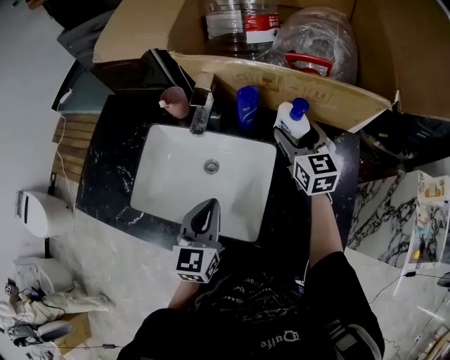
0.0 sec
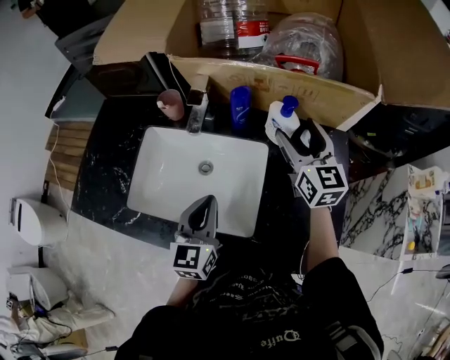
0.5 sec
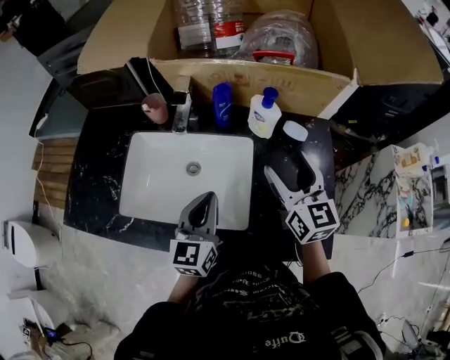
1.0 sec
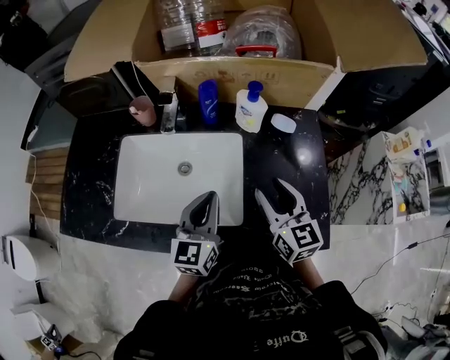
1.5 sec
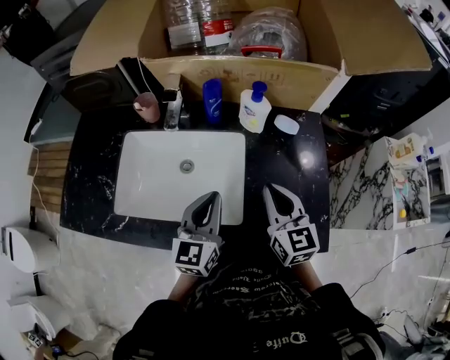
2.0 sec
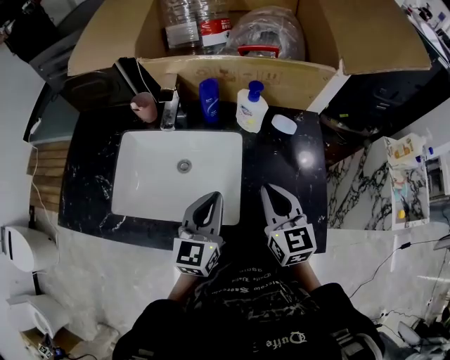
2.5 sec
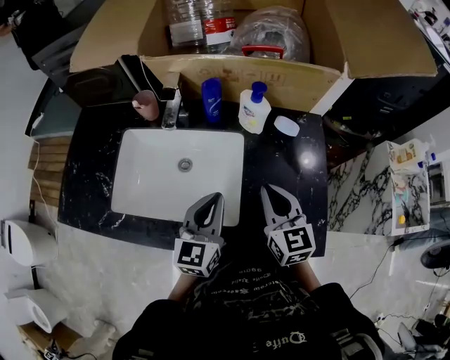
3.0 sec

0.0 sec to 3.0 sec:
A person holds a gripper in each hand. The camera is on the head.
0.0 sec to 1.5 sec: The left gripper shifts by roughly 5 cm; the right gripper shifts about 25 cm backward.
1.5 sec to 3.0 sec: The right gripper closes up.

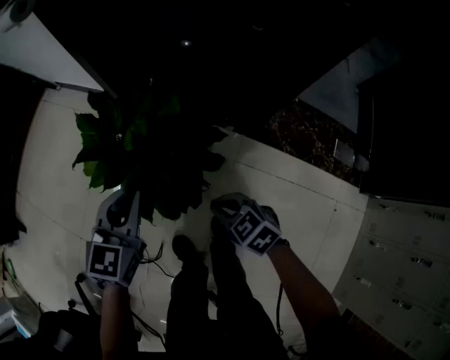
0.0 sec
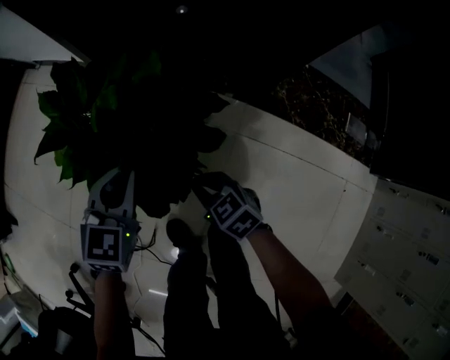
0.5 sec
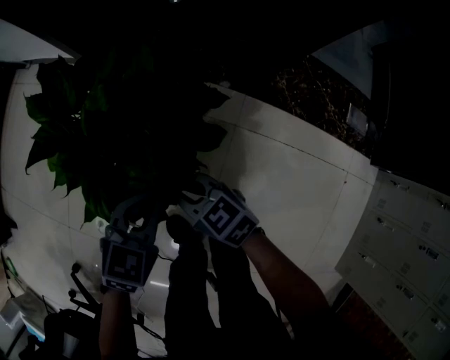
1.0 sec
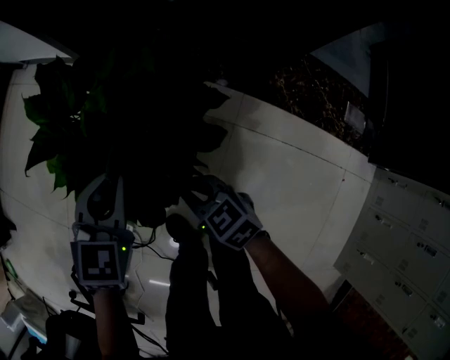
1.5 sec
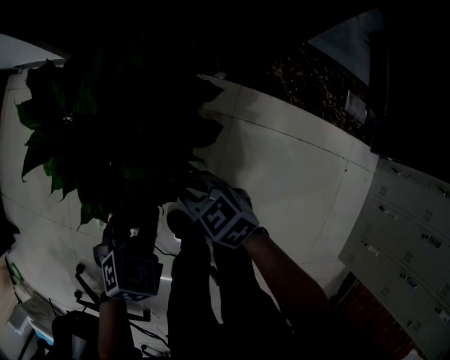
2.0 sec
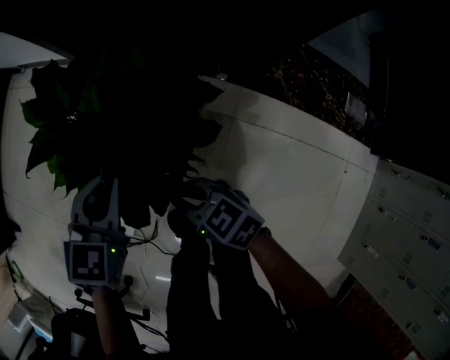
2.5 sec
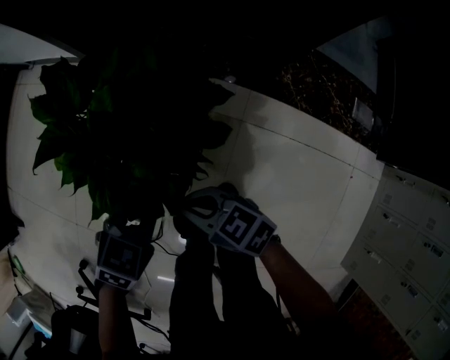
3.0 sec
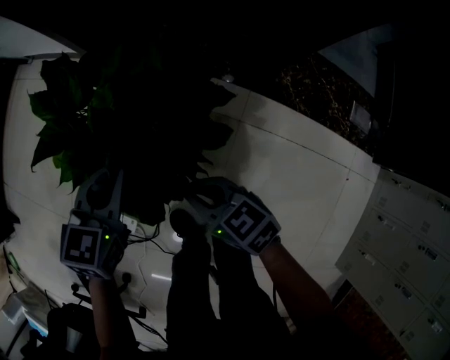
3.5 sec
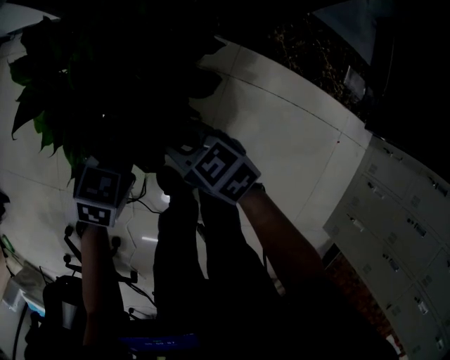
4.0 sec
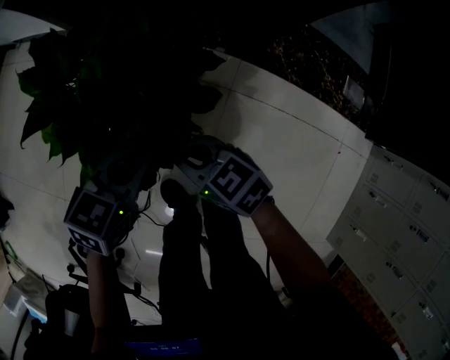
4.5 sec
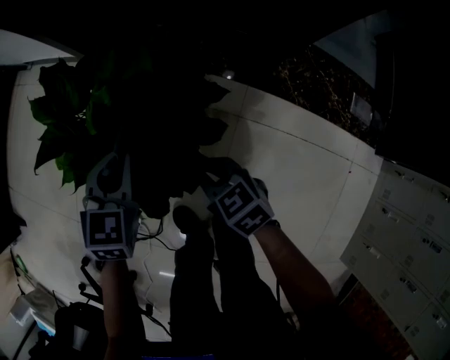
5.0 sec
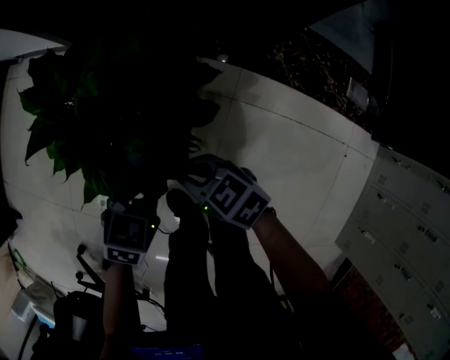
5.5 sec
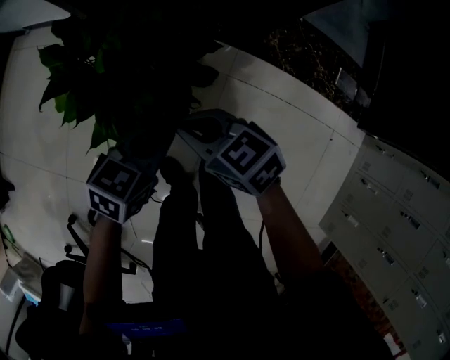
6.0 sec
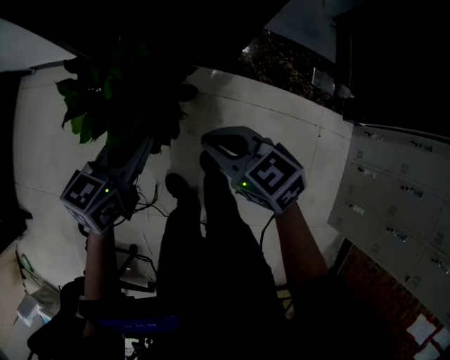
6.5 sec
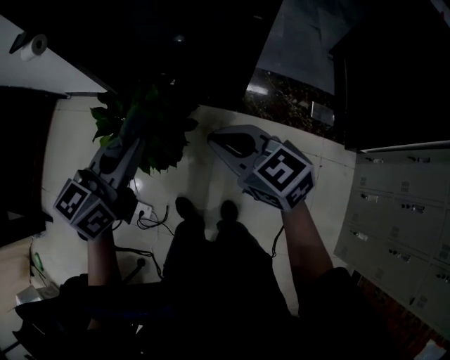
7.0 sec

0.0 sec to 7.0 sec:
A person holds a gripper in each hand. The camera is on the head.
0.0 sec to 2.0 sec: The left gripper goes up and down, roughly 20 cm each way, reversing 2 times, and points its fingers about 30 degrees further downward, while the right gripper goes about 15 cm downward, forward and to the left.
2.0 sec to 3.5 sec: The right gripper shifts roughly 5 cm upward; the left gripper swings up and down, roughly 10 cm each way, with 2 reversals, and rotates about 40 degrees.
3.5 sec to 5.0 sec: The right gripper changes place by some 5 cm. Meanwhile the left gripper travels backward and back again, approximately 5 cm each way.
5.0 sec to 7.0 sec: Both grippers travel together upward, approximately 40 cm. The right gripper rotates roughly 30 degrees. The left gripper changes its angle by approximately 40 degrees.

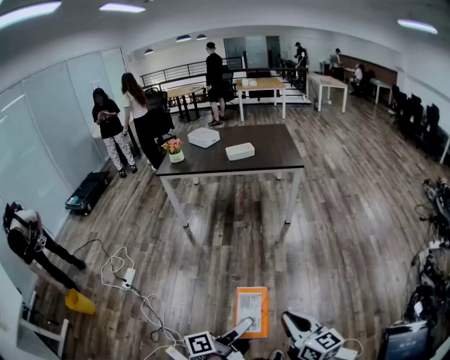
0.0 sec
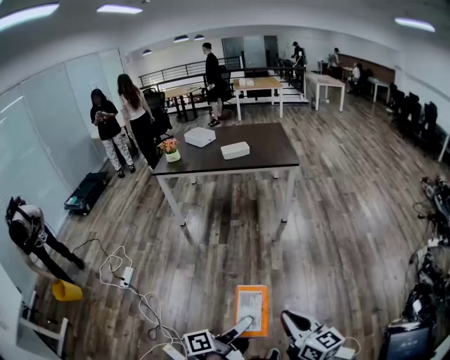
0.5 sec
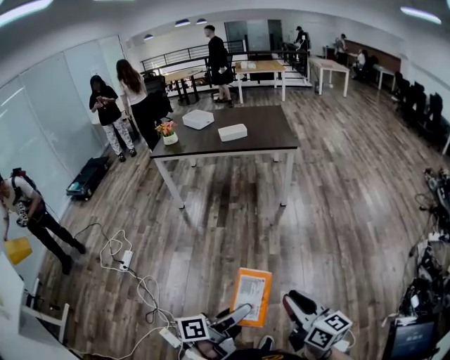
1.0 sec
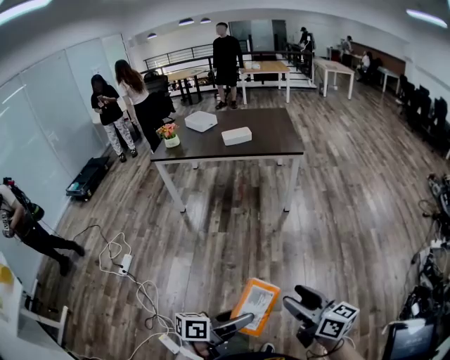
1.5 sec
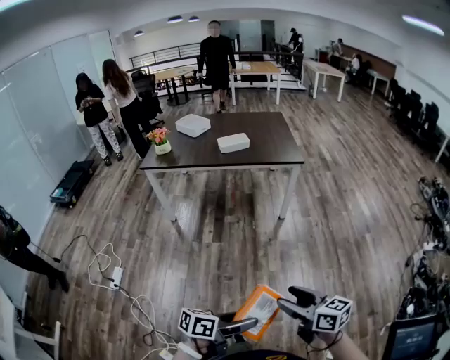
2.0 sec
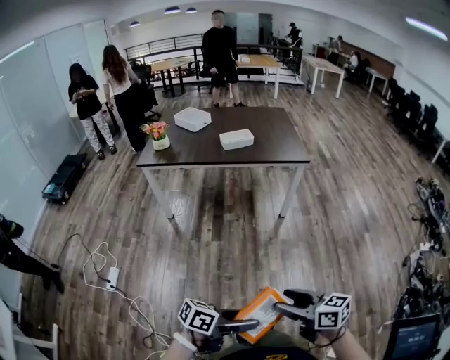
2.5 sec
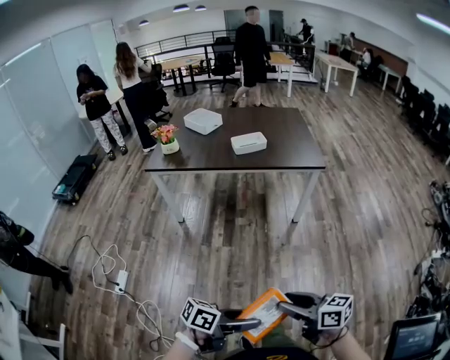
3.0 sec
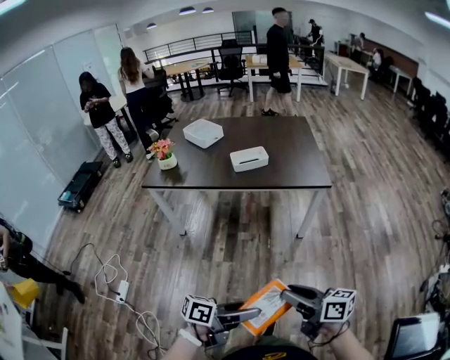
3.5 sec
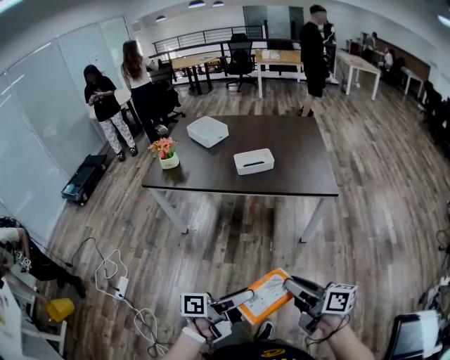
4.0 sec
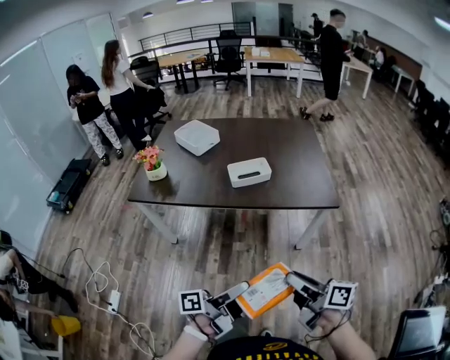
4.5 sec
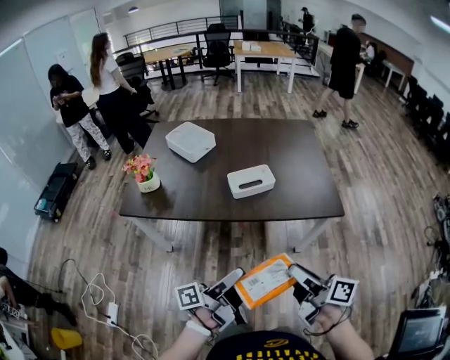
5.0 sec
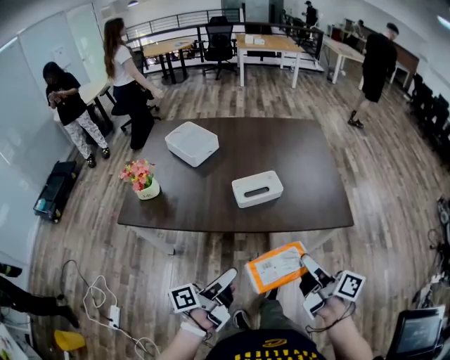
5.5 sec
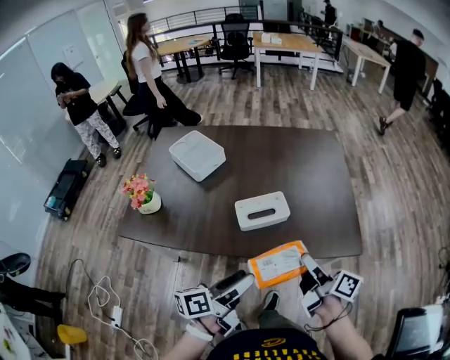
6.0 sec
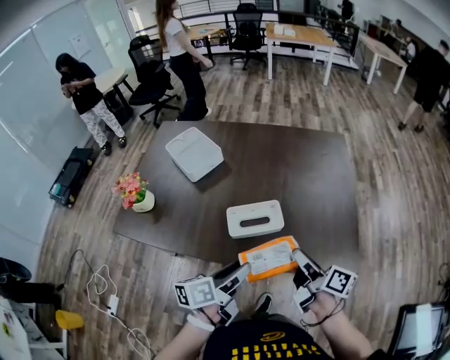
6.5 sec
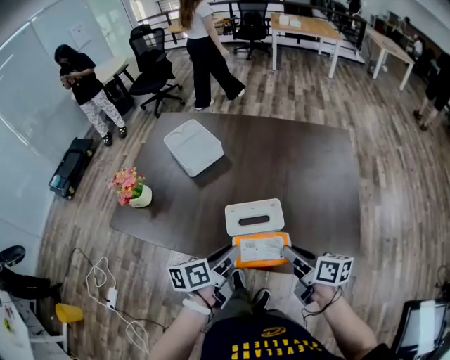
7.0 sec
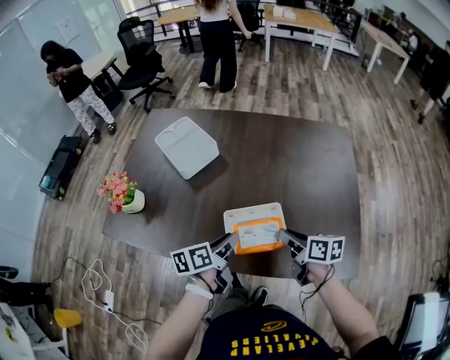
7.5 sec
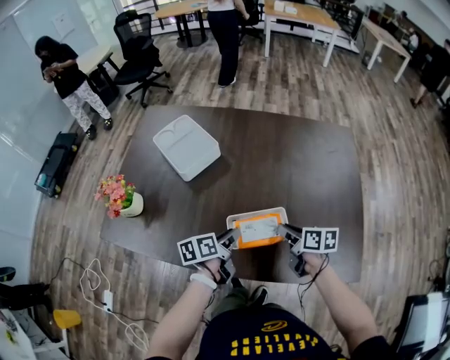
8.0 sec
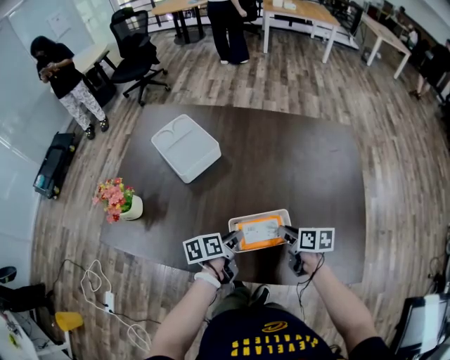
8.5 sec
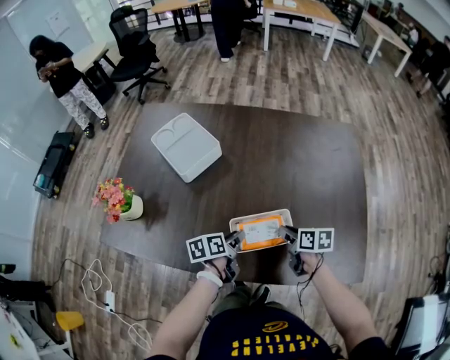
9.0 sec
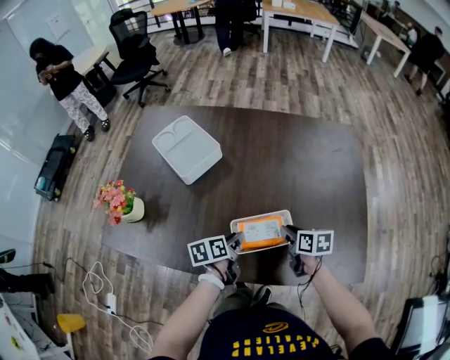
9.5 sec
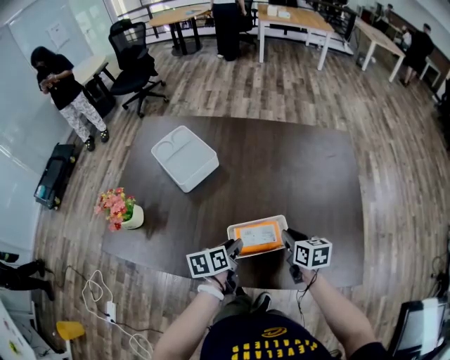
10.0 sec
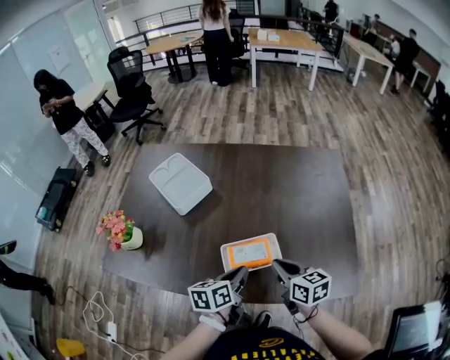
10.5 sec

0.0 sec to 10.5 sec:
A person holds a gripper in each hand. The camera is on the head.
0.0 sec to 2.0 sec: Both grippers travel together forward, about 15 cm. The right gripper opens, while the left gripper turns by roughly 40 degrees.
2.0 sec to 4.0 sec: The left gripper moves approximately 40 cm, and swivels approximately 30 degrees. Meanwhile the right gripper moves some 35 cm, rotates about 20 degrees, and closes.
4.0 sec to 6.5 sec: The pair of grippers is taken forward, about 50 cm. The left gripper turns by about 30 degrees.
6.5 sec to 8.5 sec: The right gripper travels downward and forward by about 25 cm, and angles its fingers downward, by approximately 40 degrees. The left gripper shifts approximately 25 cm forward and downward, and closes.
8.5 sec to 10.5 sec: The right gripper is displaced upward and backward by about 10 cm, and changes its angle by about 20 degrees. The left gripper heads upward and to the right, covering about 10 cm, and closes up.

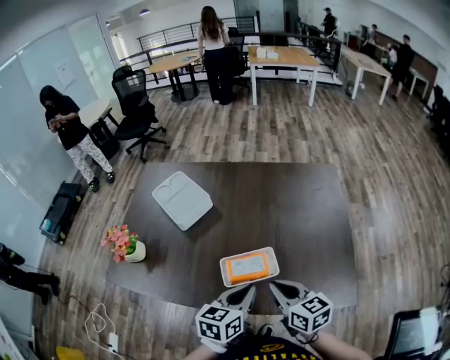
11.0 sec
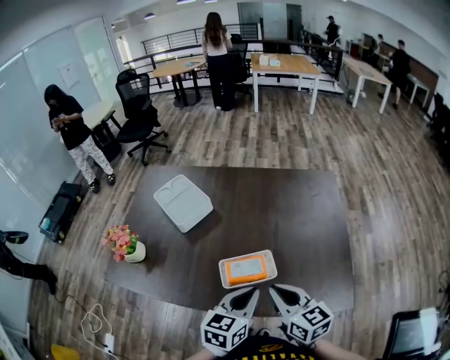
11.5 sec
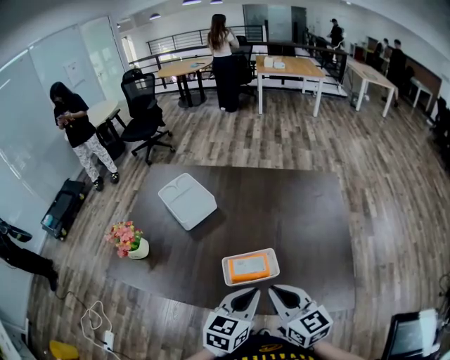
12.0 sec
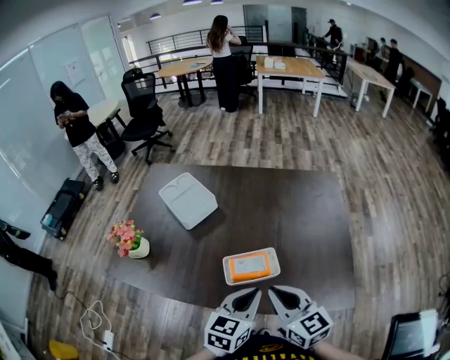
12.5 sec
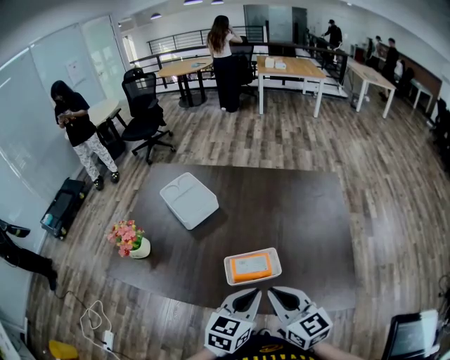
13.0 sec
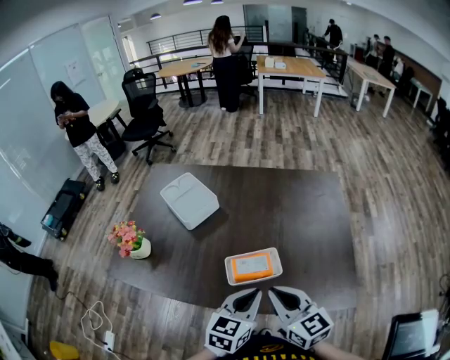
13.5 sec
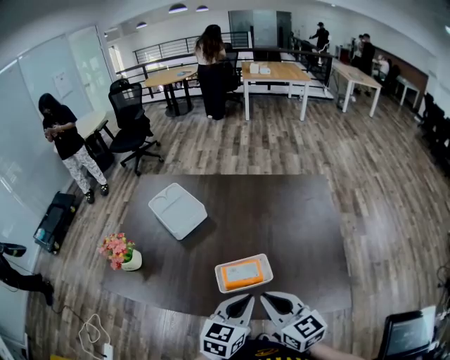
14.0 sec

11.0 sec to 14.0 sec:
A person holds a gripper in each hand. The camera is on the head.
11.0 sec to 12.5 sec: The right gripper is displaced upward by some 5 cm.
12.5 sec to 14.0 sec: Neither gripper changes place.

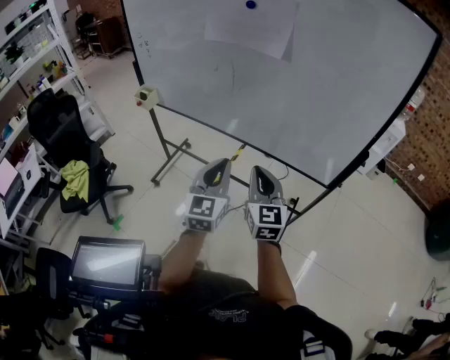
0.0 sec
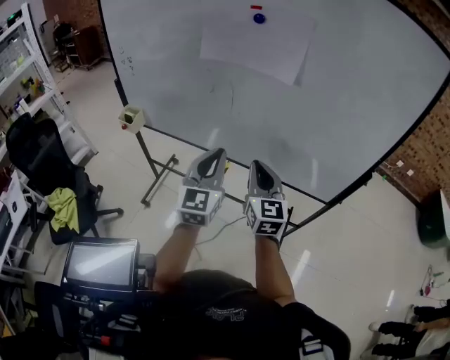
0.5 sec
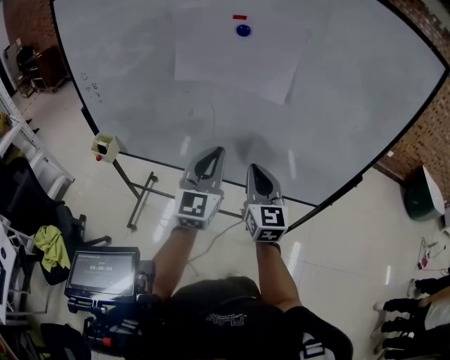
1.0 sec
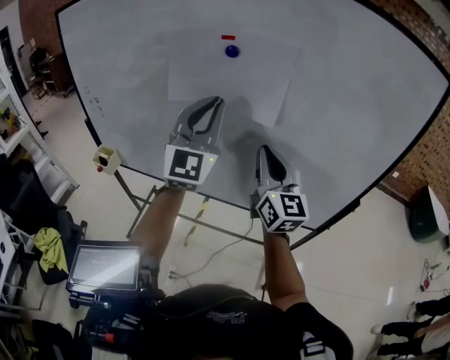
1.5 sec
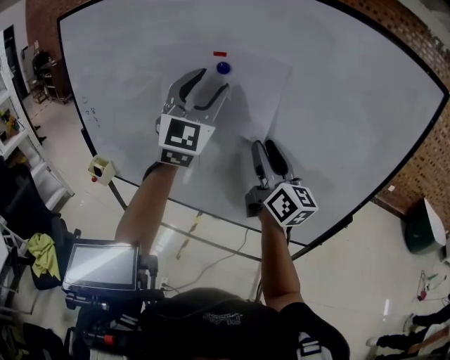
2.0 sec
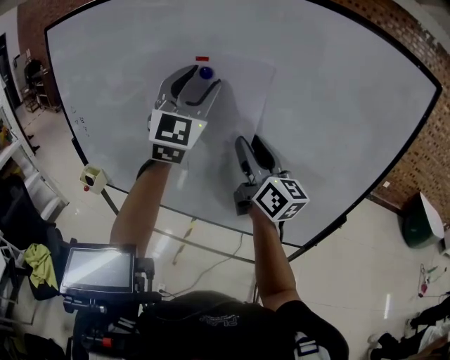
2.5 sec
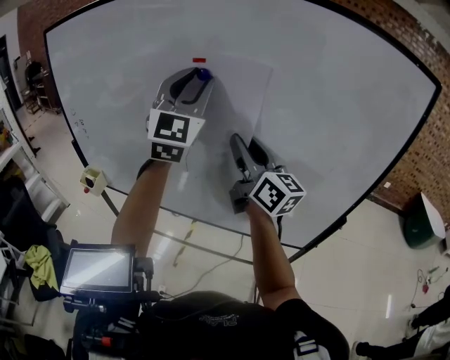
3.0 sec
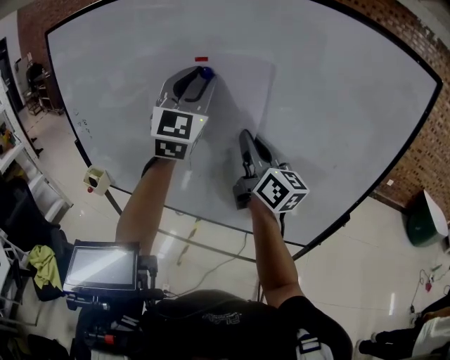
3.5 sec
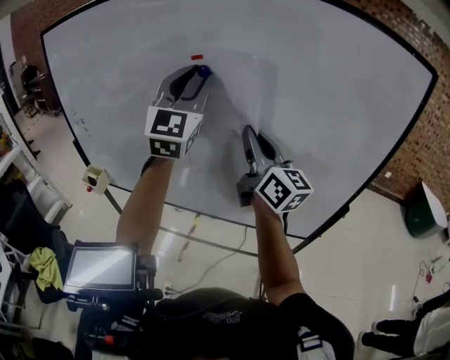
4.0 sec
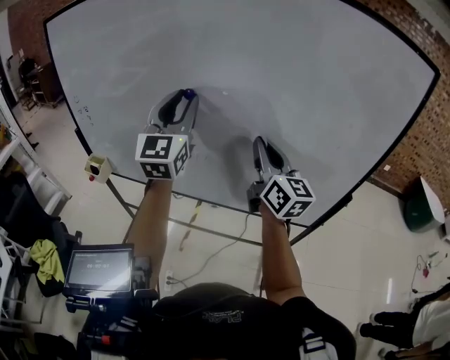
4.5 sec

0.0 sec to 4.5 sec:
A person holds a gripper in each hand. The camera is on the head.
0.0 sec to 2.0 sec: The left gripper goes roughly 40 cm upward and forward, changes its angle by some 40 degrees, and opens its fingers. The right gripper goes roughly 35 cm forward and upward, swivels roughly 30 degrees, and opens its fingers.
2.0 sec to 4.5 sec: The right gripper closes up. Meanwhile the left gripper moves downward, some 5 cm, swivels roughly 20 degrees, and closes its fingers.
